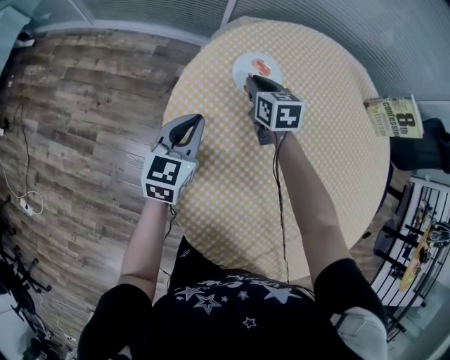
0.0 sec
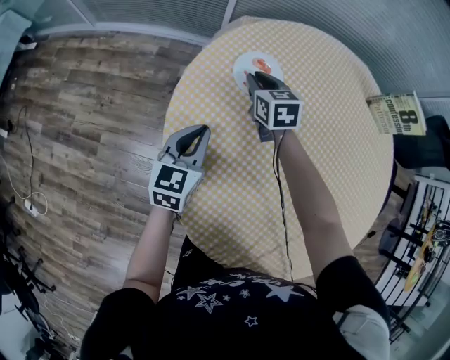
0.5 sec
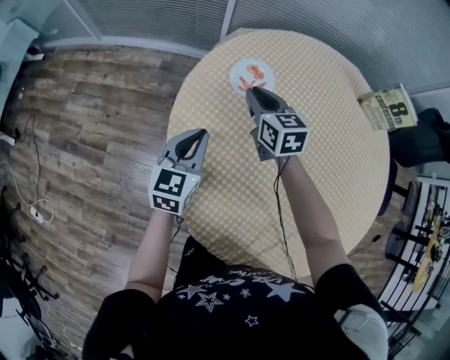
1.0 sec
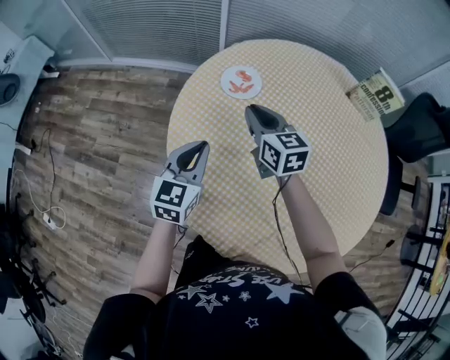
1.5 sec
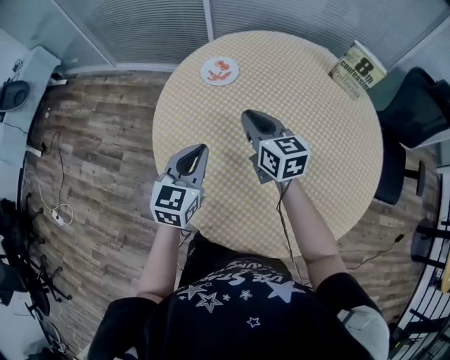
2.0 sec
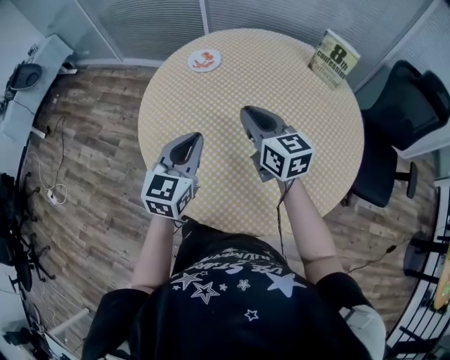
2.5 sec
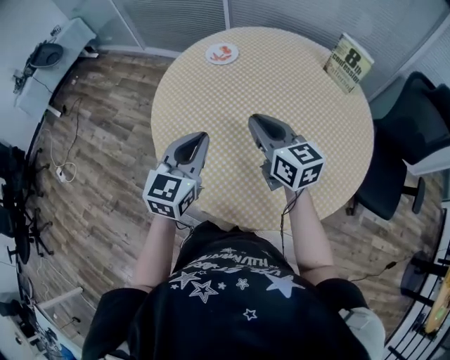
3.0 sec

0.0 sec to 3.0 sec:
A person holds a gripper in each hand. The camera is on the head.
0.0 sec to 1.5 sec: Both grippers travel together backward and upward, some 20 cm.
1.5 sec to 3.0 sec: The grippers both shift backward and to the right by about 30 cm. The right gripper swivels about 20 degrees.

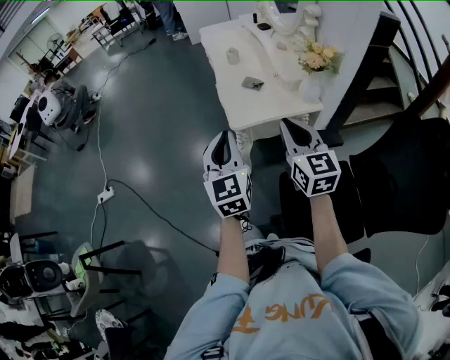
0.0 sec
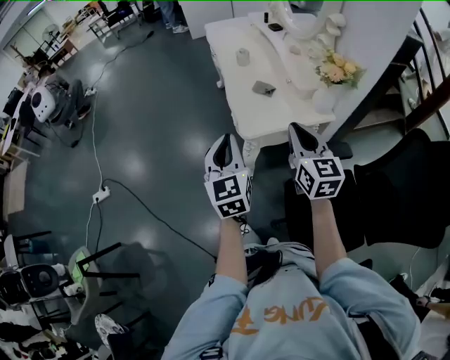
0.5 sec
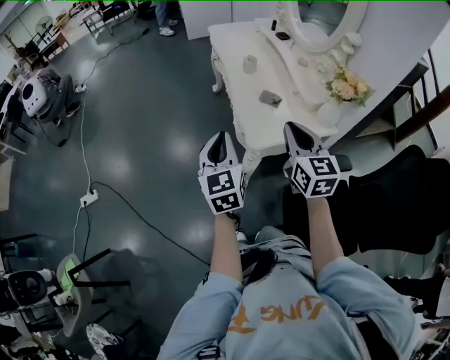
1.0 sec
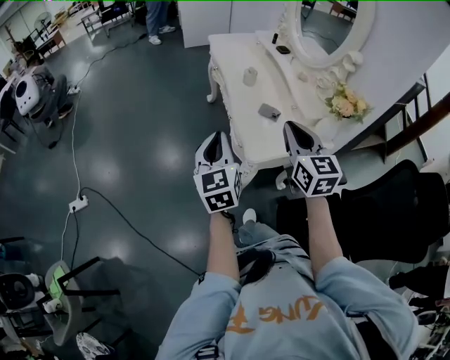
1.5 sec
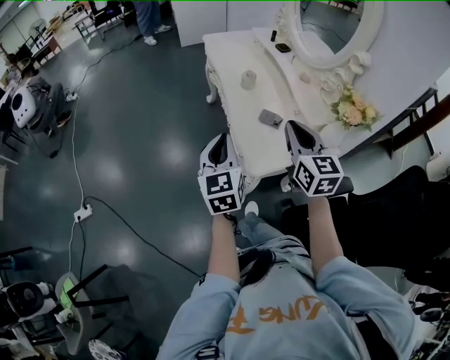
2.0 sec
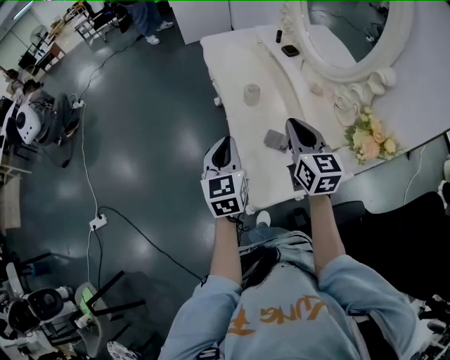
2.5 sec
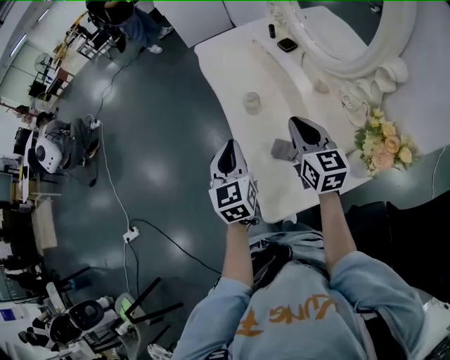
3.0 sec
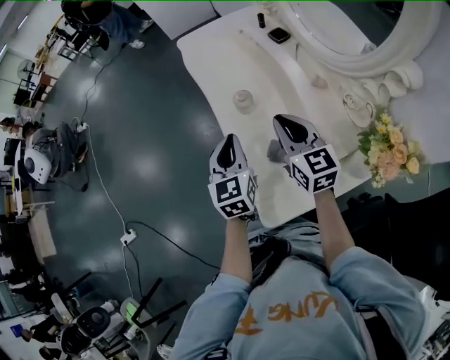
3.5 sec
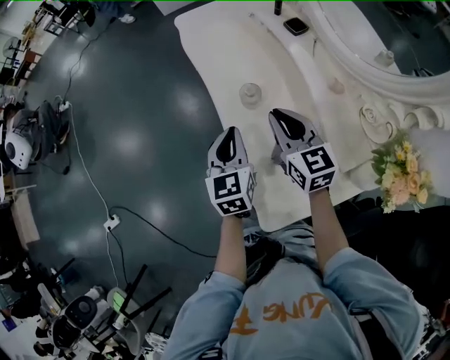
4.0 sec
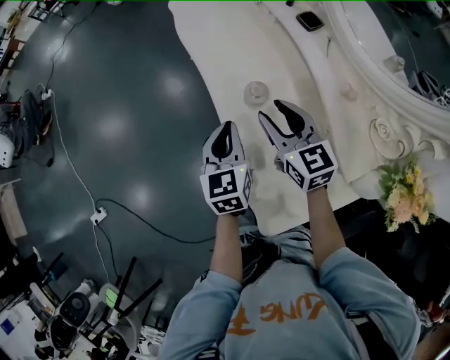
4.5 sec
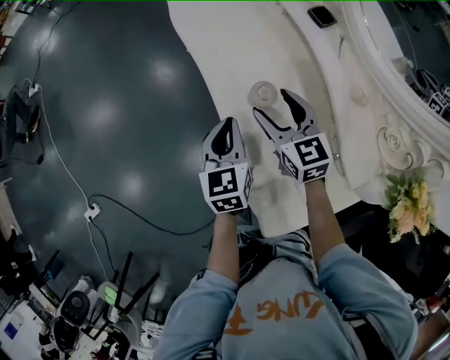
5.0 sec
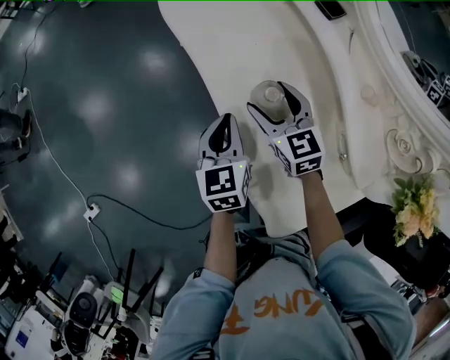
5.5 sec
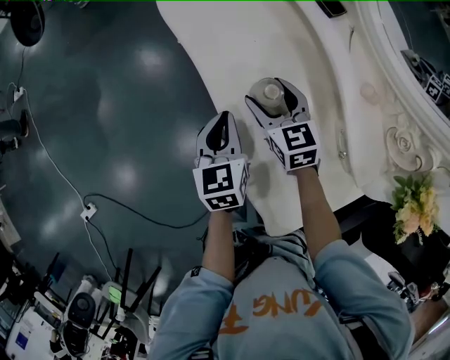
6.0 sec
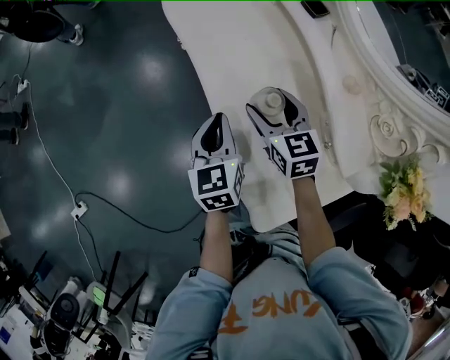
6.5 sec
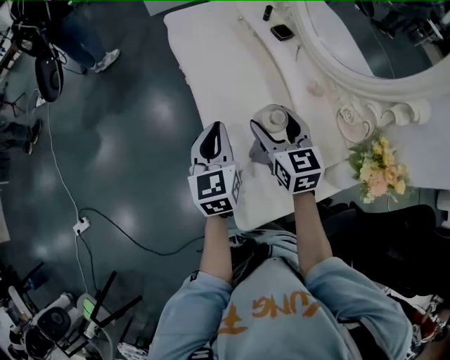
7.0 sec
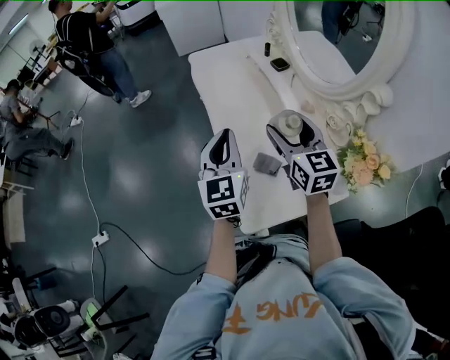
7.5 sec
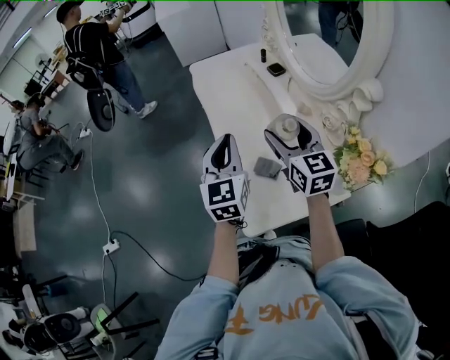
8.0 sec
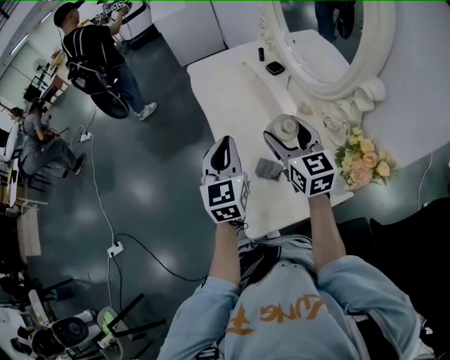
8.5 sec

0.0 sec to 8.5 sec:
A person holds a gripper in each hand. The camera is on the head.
0.0 sec to 2.0 sec: Both grippers travel together forward, roughly 25 cm.
2.0 sec to 4.0 sec: The left gripper moves forward, about 30 cm. The right gripper moves forward and downward, roughly 30 cm.
4.0 sec to 6.5 sec: The right gripper is displaced downward and forward by some 10 cm, and opens up, while the left gripper travels downward by some 5 cm.
6.5 sec to 8.5 sec: The right gripper is displaced upward, backward and to the right by about 25 cm, and rotates some 20 degrees. The left gripper is displaced upward and backward by some 25 cm, and turns by roughly 20 degrees.

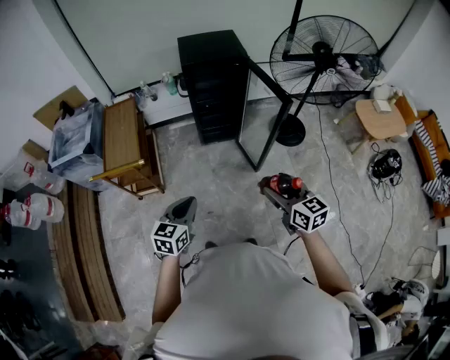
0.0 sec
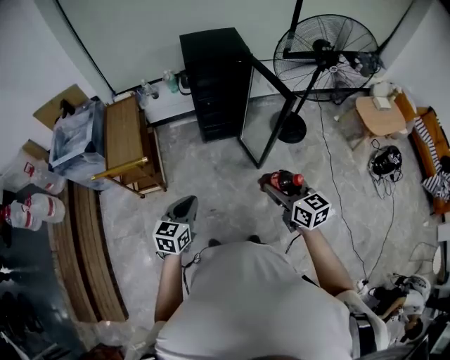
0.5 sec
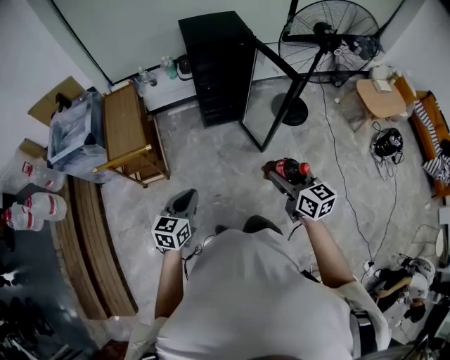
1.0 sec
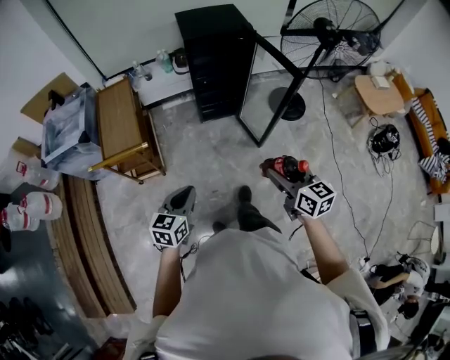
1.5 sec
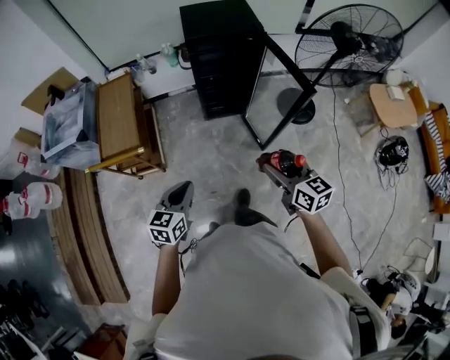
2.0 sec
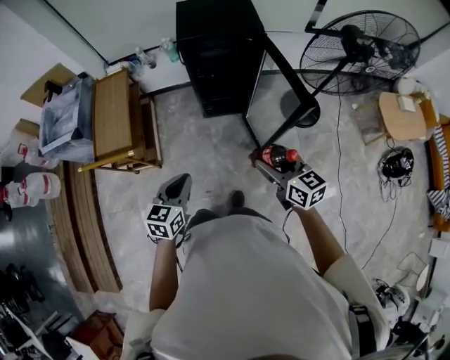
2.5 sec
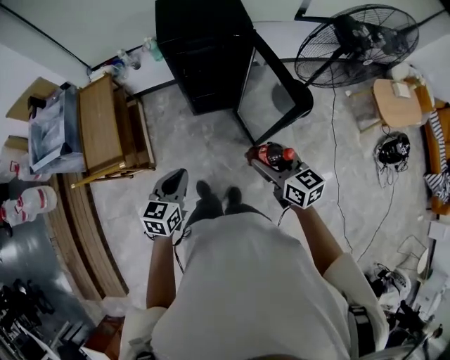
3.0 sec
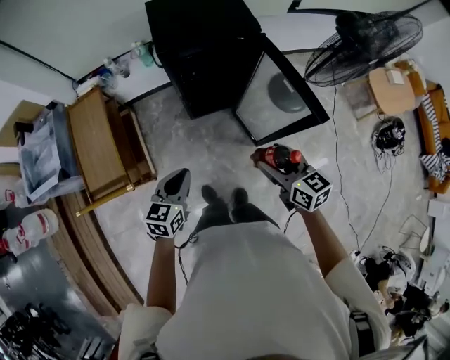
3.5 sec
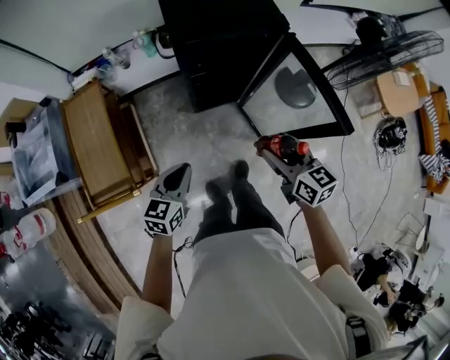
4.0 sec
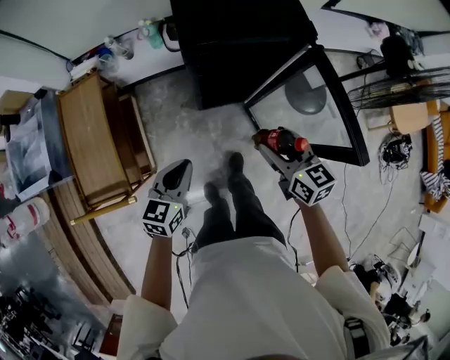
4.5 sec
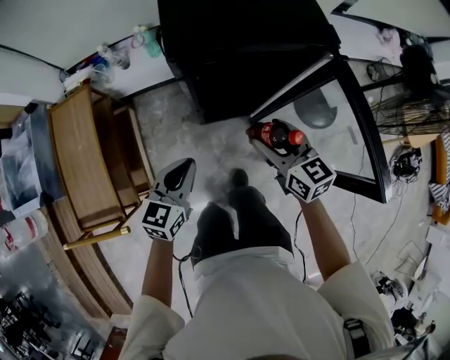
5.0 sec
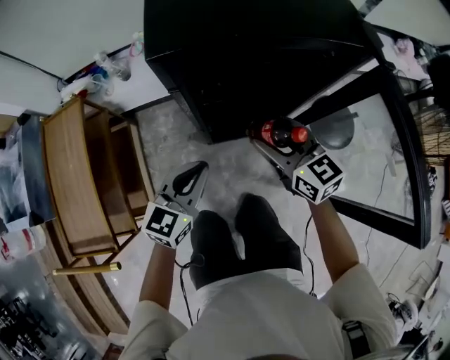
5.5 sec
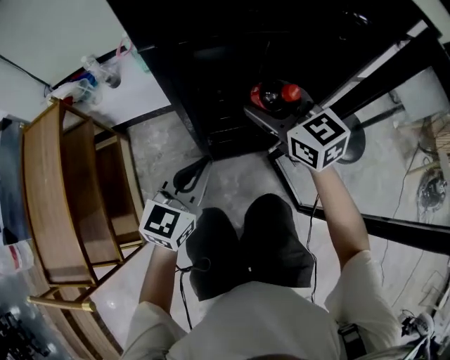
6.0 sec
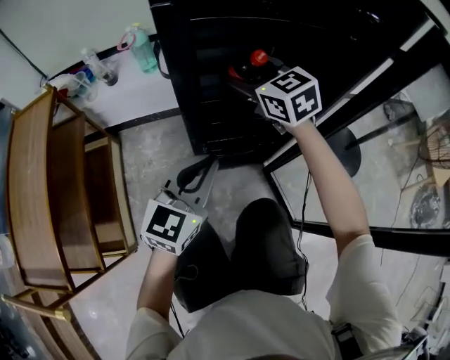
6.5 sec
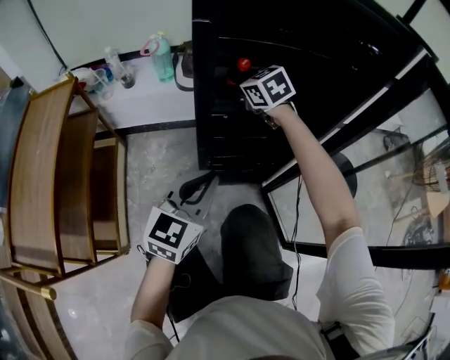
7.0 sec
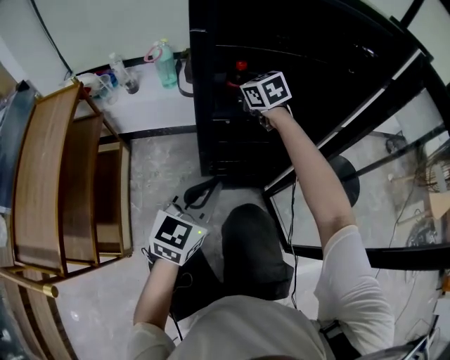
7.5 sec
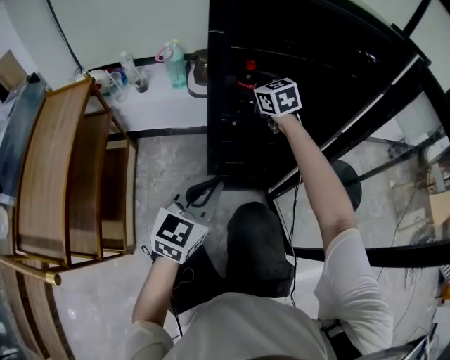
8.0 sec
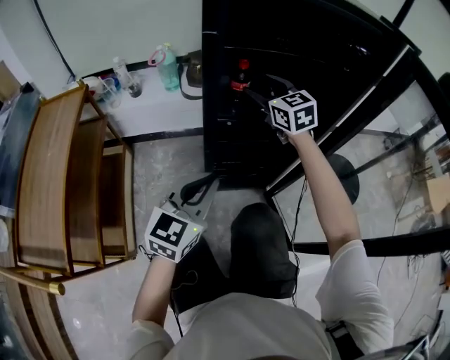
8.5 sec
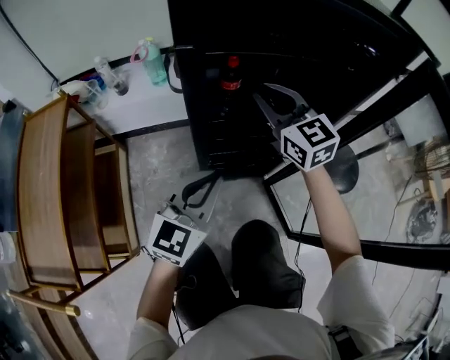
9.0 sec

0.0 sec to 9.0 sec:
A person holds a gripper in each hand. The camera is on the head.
0.0 sec to 2.0 sec: Both grippers travel together forward, some 10 cm.
2.0 sec to 4.5 sec: The two grippers go approximately 40 cm forward.
4.5 sec to 7.0 sec: The right gripper travels forward and downward by approximately 50 cm, and rotates roughly 40 degrees. Meanwhile the left gripper is displaced downward and forward by approximately 35 cm, and changes its angle by roughly 20 degrees.
7.0 sec to 9.0 sec: The right gripper is displaced upward, backward and to the right by roughly 15 cm, turns by roughly 30 degrees, and closes its fingers.

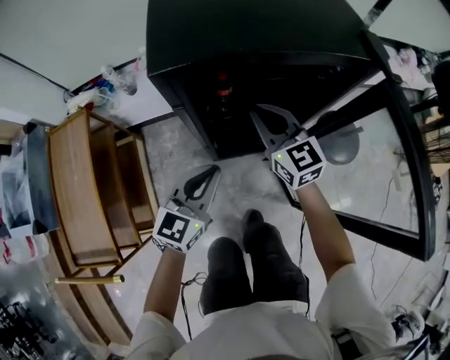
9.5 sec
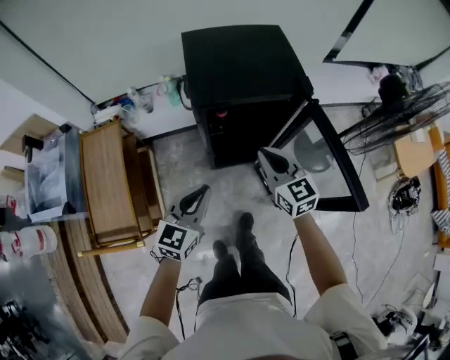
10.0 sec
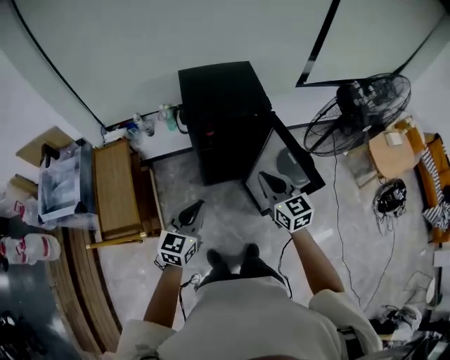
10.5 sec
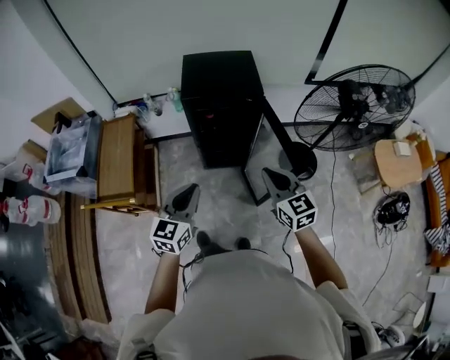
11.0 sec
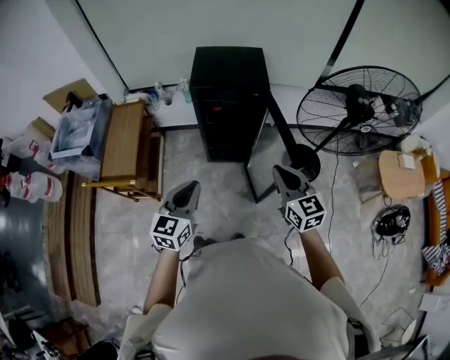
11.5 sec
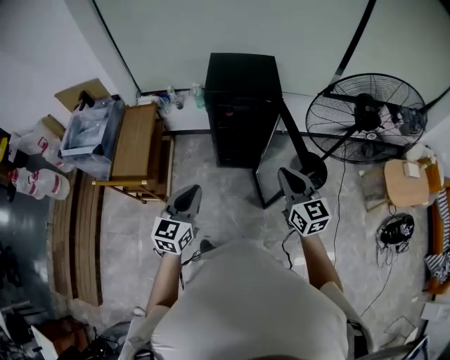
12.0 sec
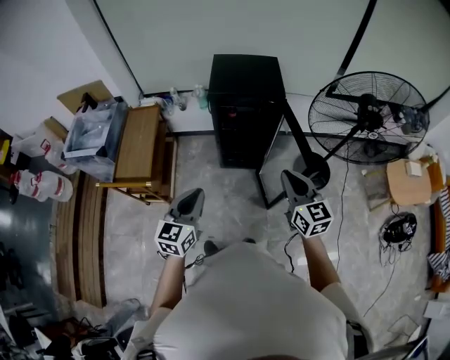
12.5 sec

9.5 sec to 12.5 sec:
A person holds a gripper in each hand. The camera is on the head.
9.5 sec to 11.0 sec: The right gripper shifts roughly 60 cm backward, upward and to the right, while the left gripper goes about 50 cm upward and backward.
11.0 sec to 12.5 sec: The left gripper heads backward, covering some 5 cm; the right gripper ends up about 5 cm from where it was.

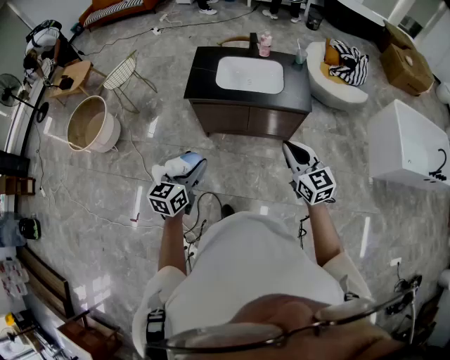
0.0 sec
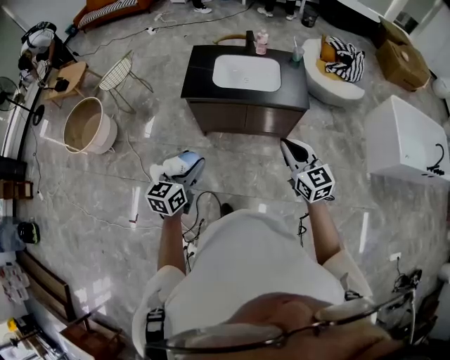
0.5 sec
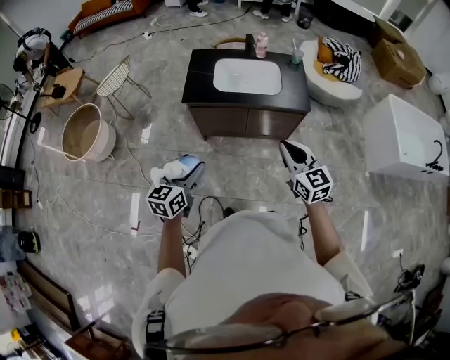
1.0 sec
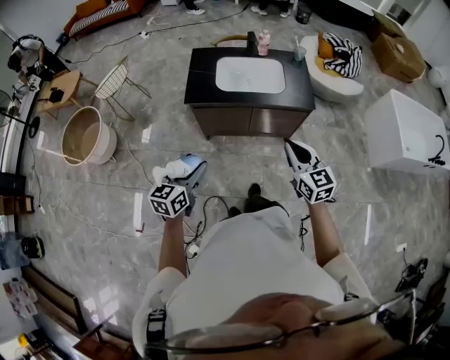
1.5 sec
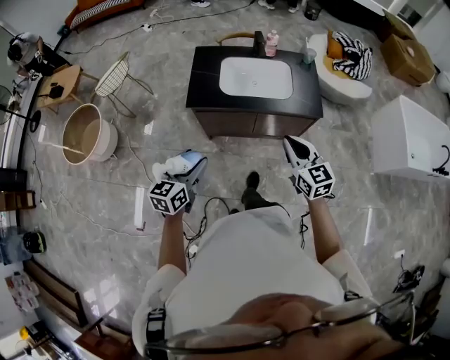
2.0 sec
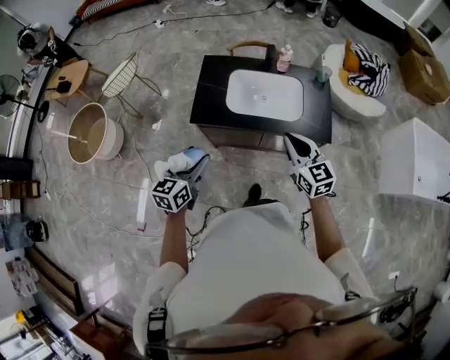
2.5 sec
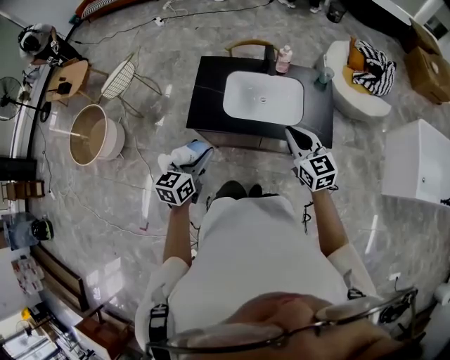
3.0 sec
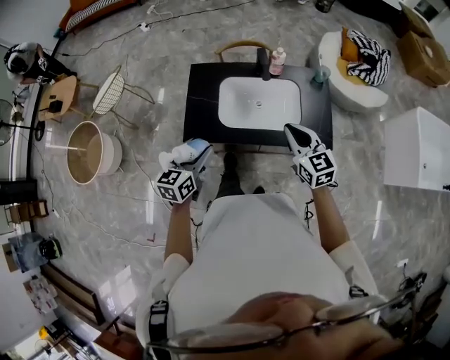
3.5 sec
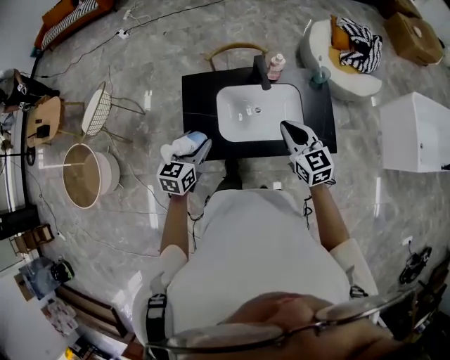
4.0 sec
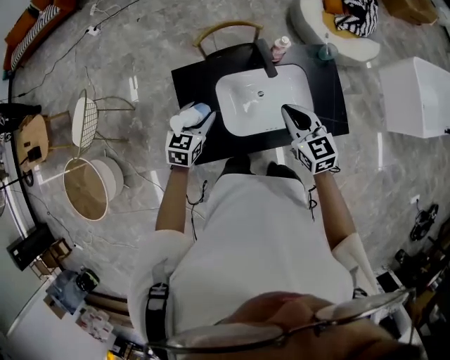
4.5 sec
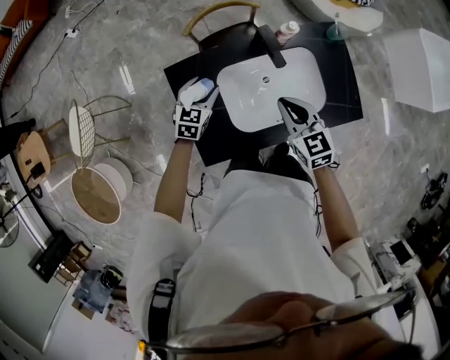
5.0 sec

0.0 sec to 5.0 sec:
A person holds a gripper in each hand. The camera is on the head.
0.0 sec to 2.5 sec: Both grippers travel together forward, some 25 cm.
2.5 sec to 5.0 sec: The left gripper is displaced forward and downward by some 60 cm, and rotates some 40 degrees. Meanwhile the right gripper moves forward and downward, roughly 35 cm, and swivels approximately 30 degrees.
